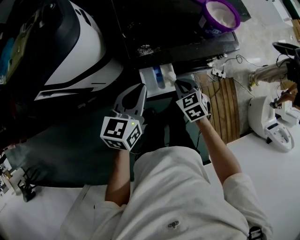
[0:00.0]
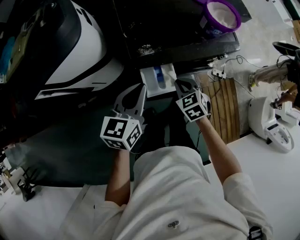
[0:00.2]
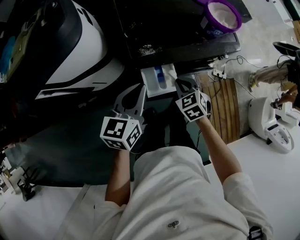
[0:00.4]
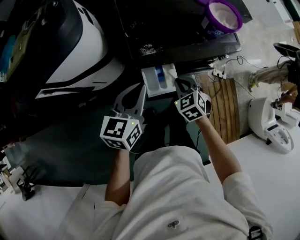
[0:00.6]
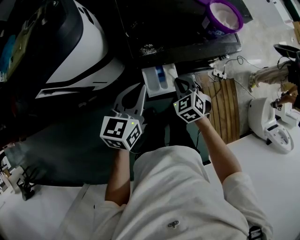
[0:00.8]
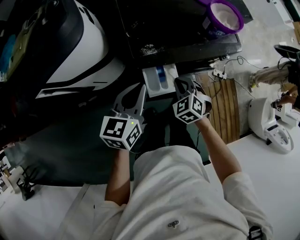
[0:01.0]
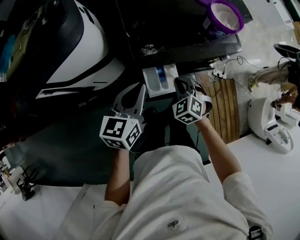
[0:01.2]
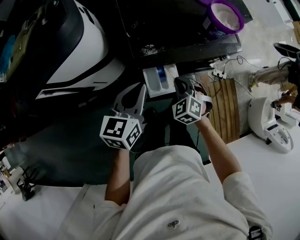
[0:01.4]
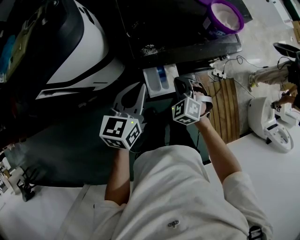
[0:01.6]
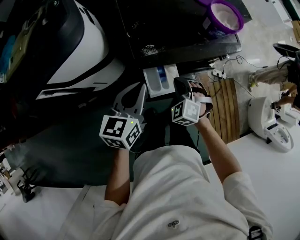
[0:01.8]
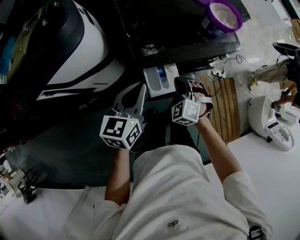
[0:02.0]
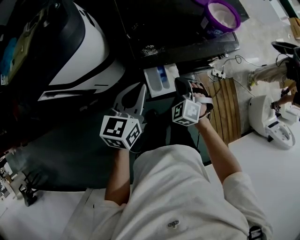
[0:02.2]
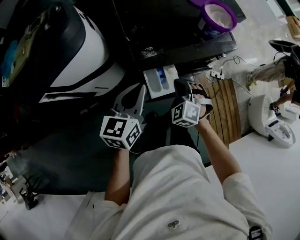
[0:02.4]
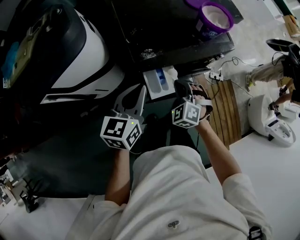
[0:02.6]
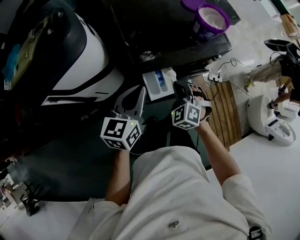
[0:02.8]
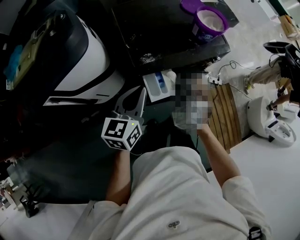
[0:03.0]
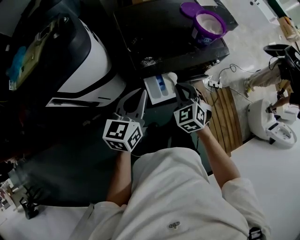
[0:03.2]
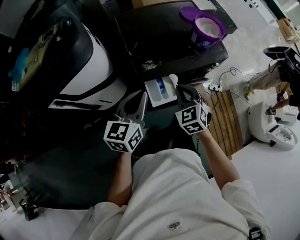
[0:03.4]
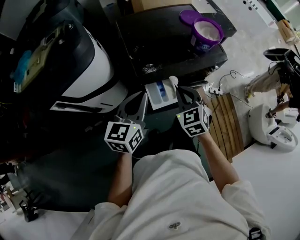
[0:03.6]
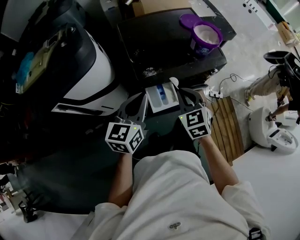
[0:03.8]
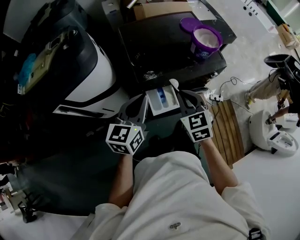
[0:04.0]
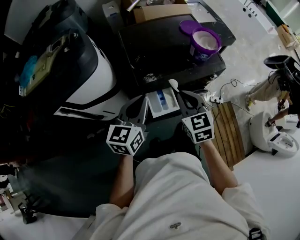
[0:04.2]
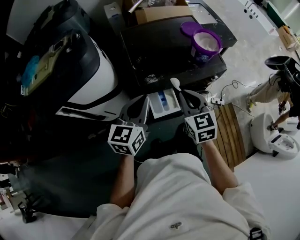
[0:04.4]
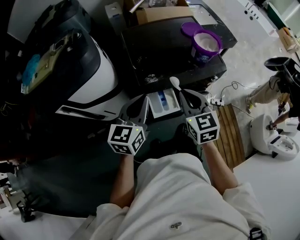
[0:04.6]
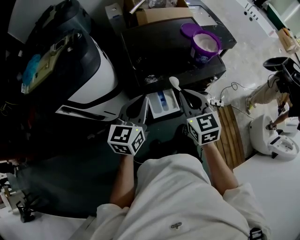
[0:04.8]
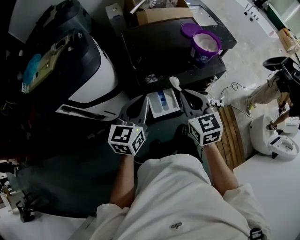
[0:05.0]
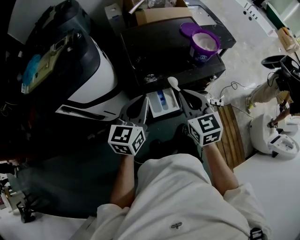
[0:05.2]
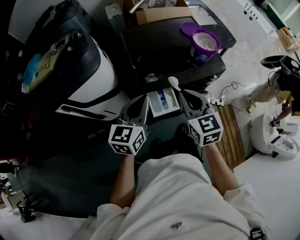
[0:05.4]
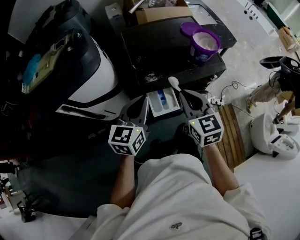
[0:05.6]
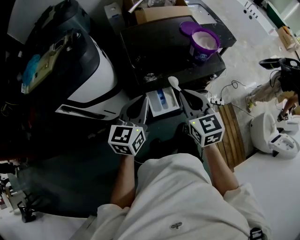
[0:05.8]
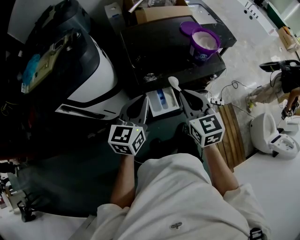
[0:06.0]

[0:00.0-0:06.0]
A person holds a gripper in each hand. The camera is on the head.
0:00.0 to 0:01.6: The right gripper turns by approximately 30 degrees.
0:01.6 to 0:03.0: The right gripper heads upward, covering about 5 cm.
0:03.0 to 0:04.4: The right gripper heads upward, covering approximately 10 cm, and changes its angle by roughly 40 degrees.
0:04.4 to 0:06.0: The grippers move only a little.

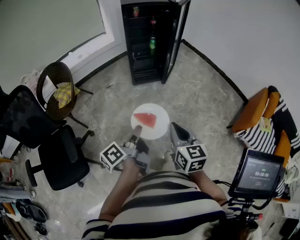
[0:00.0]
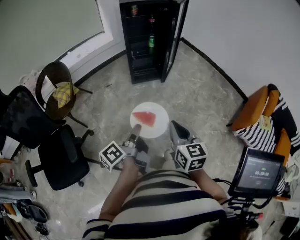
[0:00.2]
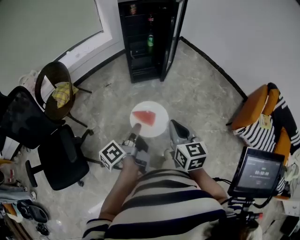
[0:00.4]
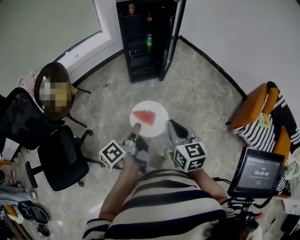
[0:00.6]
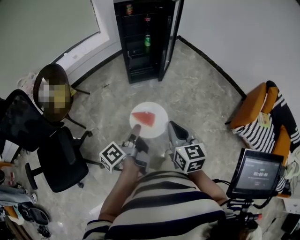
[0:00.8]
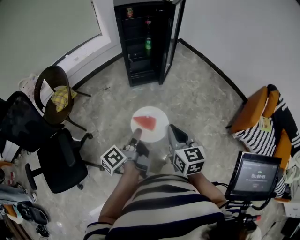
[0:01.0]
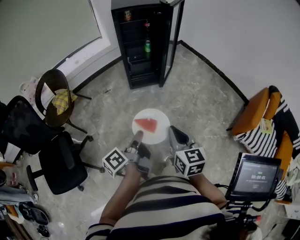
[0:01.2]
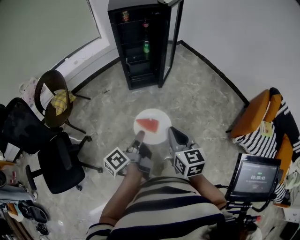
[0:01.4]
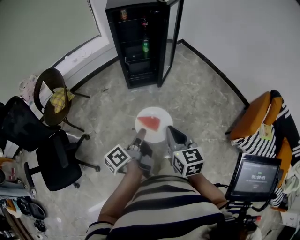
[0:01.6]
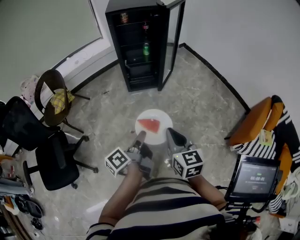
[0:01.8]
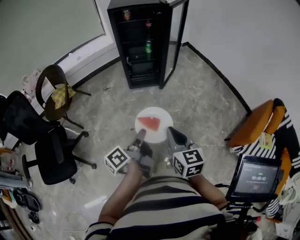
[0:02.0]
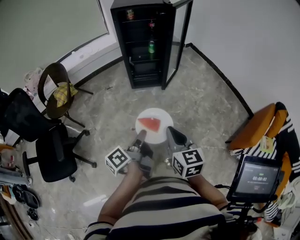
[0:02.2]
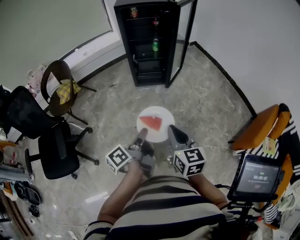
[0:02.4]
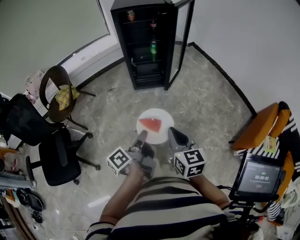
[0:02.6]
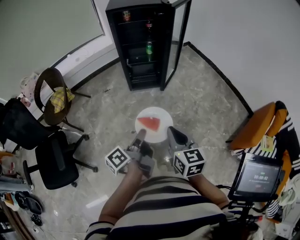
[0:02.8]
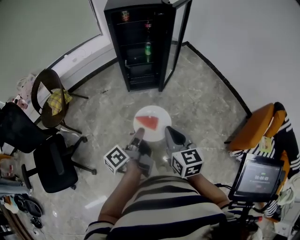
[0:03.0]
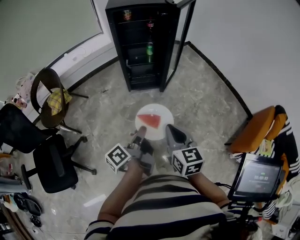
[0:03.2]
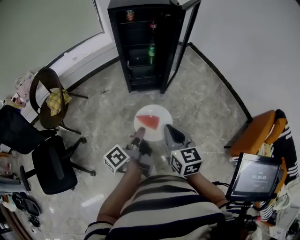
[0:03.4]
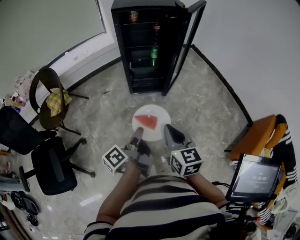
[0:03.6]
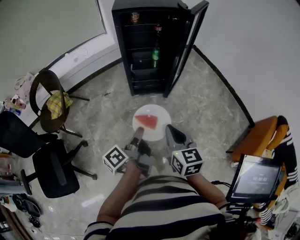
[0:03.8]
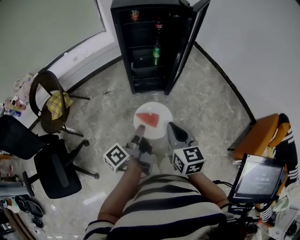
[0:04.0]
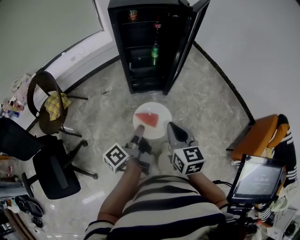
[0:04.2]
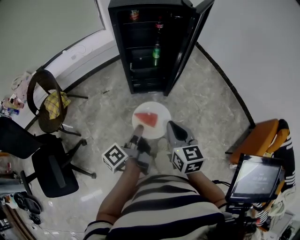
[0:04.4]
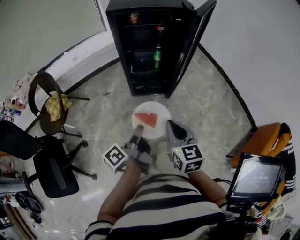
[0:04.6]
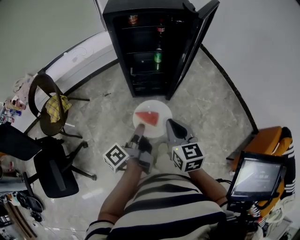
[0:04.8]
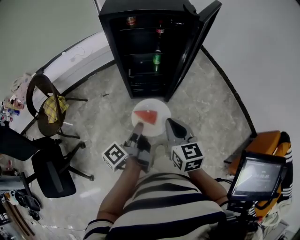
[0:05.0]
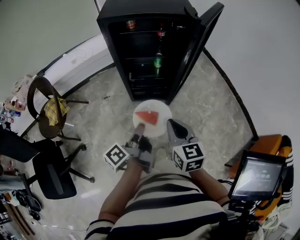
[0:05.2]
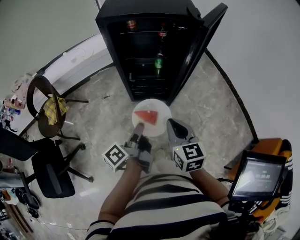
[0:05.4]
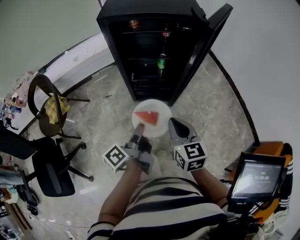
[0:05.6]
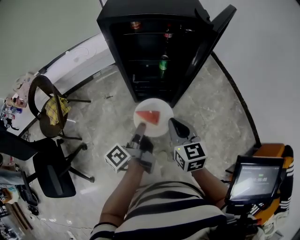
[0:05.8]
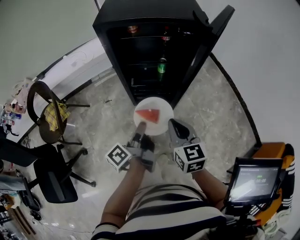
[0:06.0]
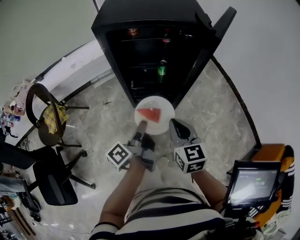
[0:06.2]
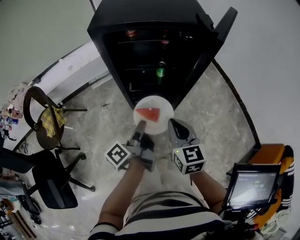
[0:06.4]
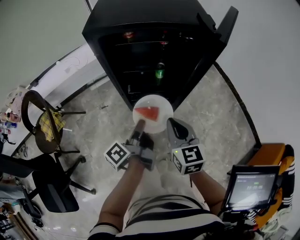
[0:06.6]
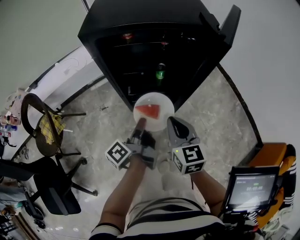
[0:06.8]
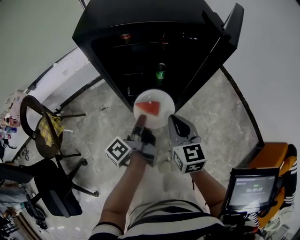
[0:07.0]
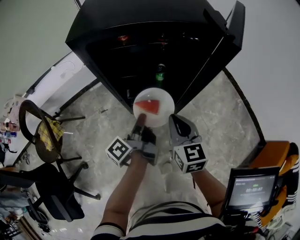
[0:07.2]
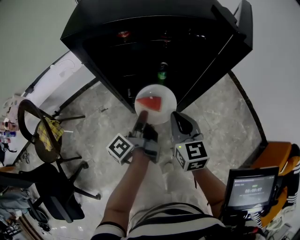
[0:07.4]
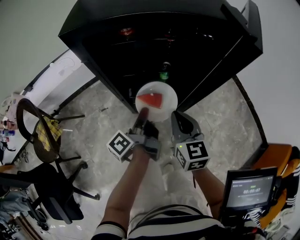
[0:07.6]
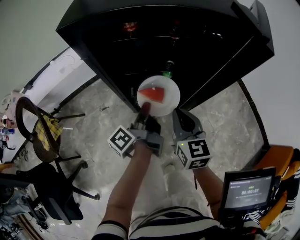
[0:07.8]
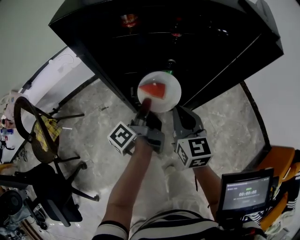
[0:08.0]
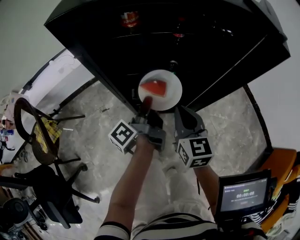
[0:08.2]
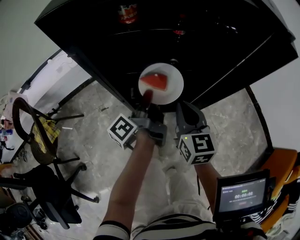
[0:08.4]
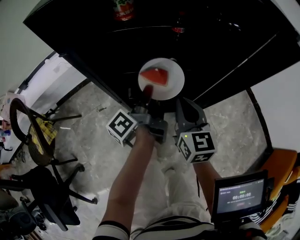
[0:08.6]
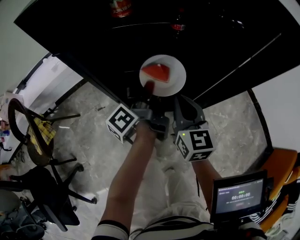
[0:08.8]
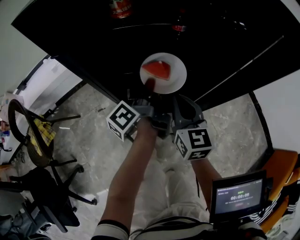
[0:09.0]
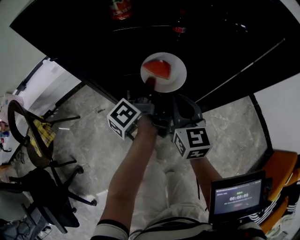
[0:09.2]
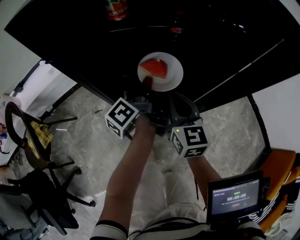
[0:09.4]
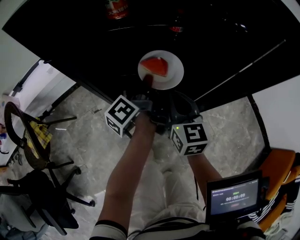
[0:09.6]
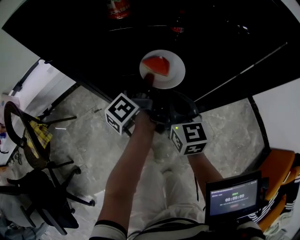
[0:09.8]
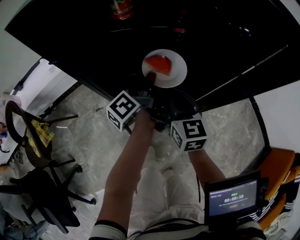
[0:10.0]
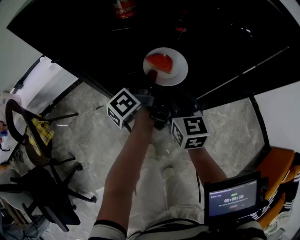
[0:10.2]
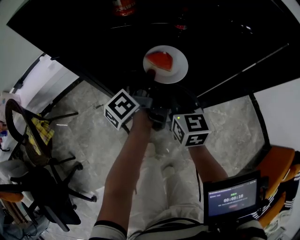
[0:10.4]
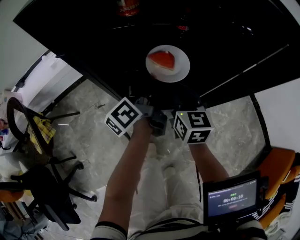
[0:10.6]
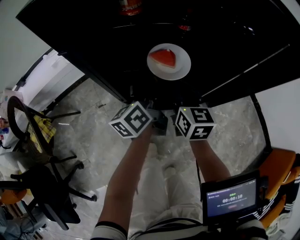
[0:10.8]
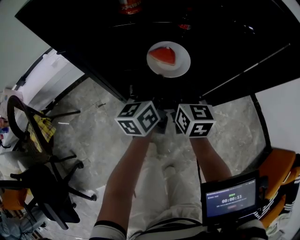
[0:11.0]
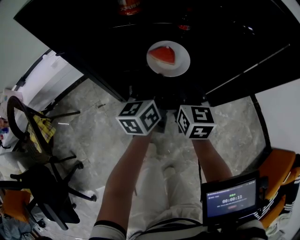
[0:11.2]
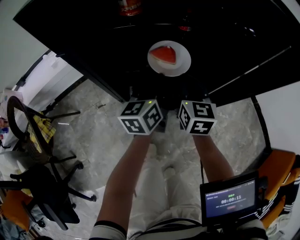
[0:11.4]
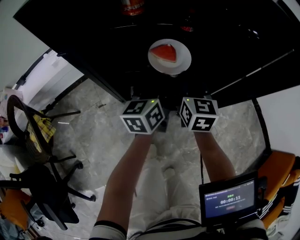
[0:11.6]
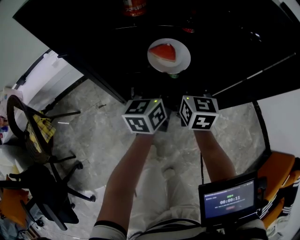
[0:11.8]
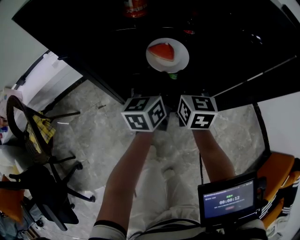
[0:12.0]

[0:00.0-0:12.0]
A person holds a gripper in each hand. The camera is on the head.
0:00.0 to 0:01.6: The two grippers go some 10 cm to the right and forward.
0:01.6 to 0:03.0: Both grippers move forward, about 10 cm.
0:03.0 to 0:04.4: The two grippers go roughly 10 cm forward.
0:04.4 to 0:06.0: Both grippers move forward, about 20 cm.
0:06.0 to 0:07.6: Both grippers travel together forward and downward, approximately 20 cm.
0:07.6 to 0:09.0: The left gripper shifts about 15 cm forward. Meanwhile the right gripper heads forward and downward, covering about 10 cm.
0:09.0 to 0:10.4: The grippers stay close to where they were, moving slightly.
0:10.4 to 0:12.0: The right gripper is displaced forward by about 5 cm; the left gripper rolls clockwise, seen from behind, by approximately 50 degrees.

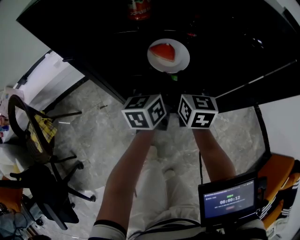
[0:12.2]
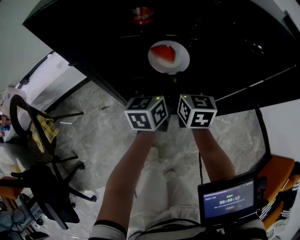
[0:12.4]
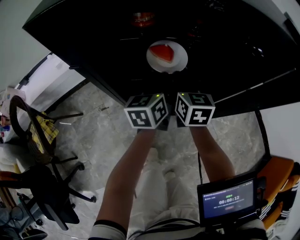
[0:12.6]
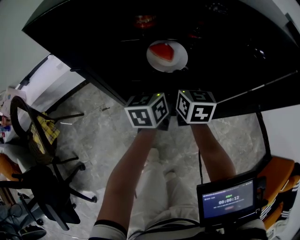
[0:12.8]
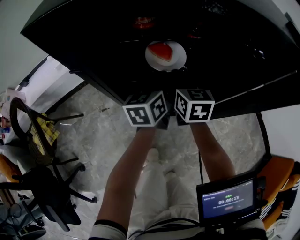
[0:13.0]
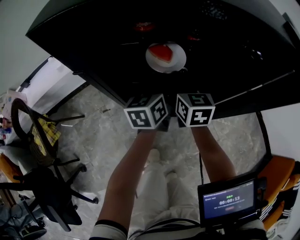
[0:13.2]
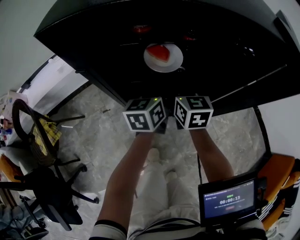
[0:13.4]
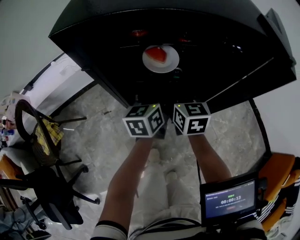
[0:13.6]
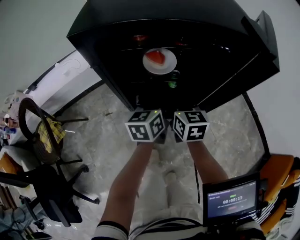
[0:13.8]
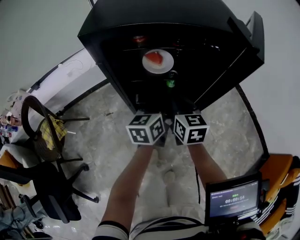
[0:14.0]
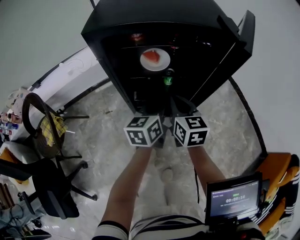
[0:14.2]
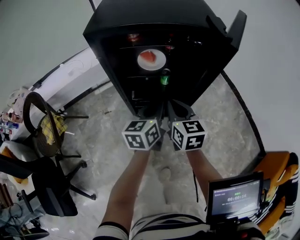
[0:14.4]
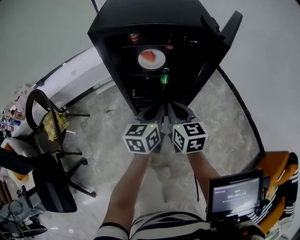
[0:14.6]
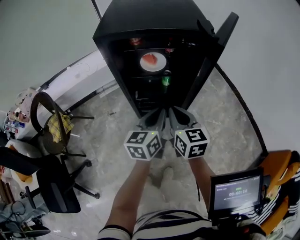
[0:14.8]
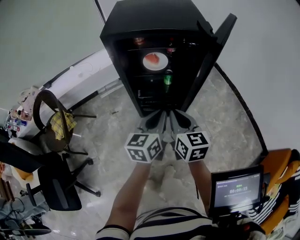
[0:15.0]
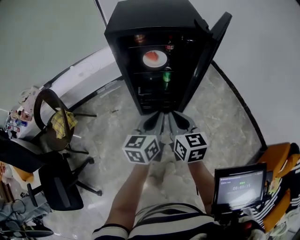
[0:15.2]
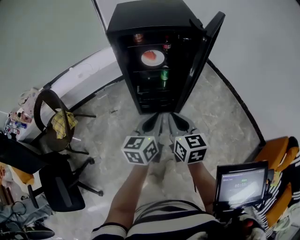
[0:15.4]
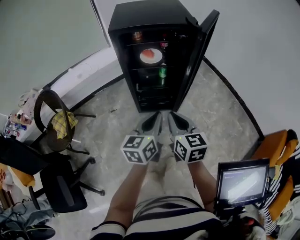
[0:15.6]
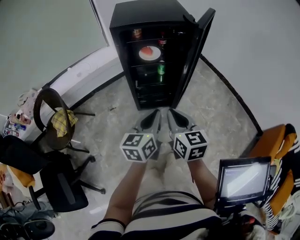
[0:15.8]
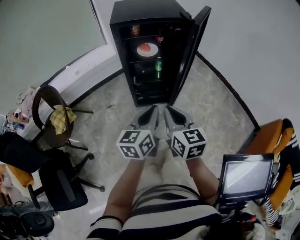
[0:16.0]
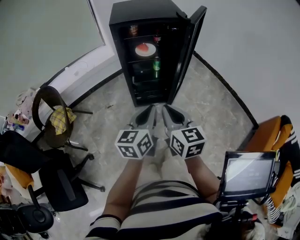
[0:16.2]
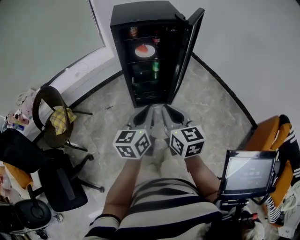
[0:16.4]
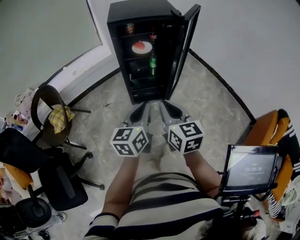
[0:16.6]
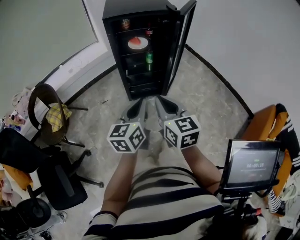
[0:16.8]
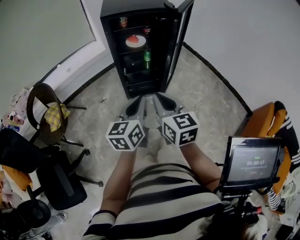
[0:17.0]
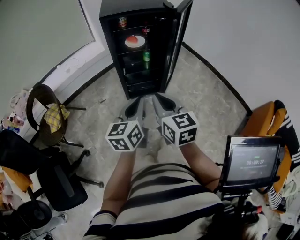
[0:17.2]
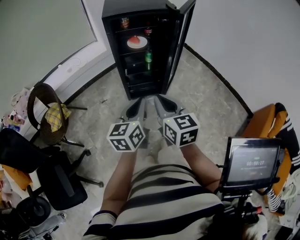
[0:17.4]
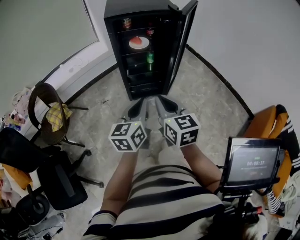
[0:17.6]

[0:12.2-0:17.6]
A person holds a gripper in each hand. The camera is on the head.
0:12.2 to 0:13.6: The right gripper changes place by approximately 5 cm.
0:13.6 to 0:15.0: The grippers both shift backward and upward by roughly 25 cm.
0:15.0 to 0:16.2: Both grippers travel together backward, approximately 20 cm.
0:16.2 to 0:17.6: The grippers stay close to where they were, moving slightly.
